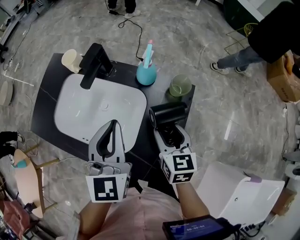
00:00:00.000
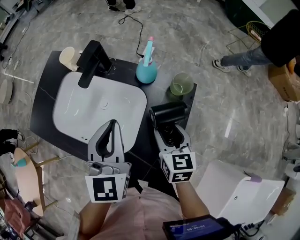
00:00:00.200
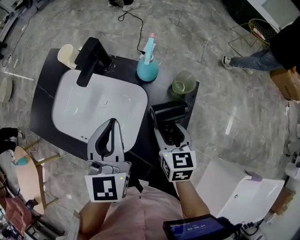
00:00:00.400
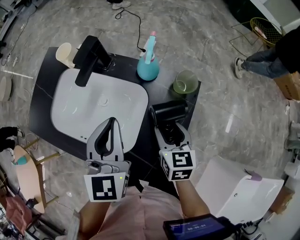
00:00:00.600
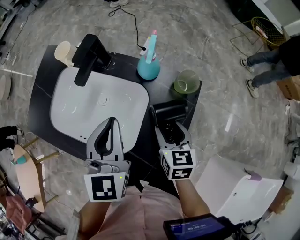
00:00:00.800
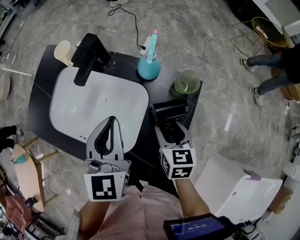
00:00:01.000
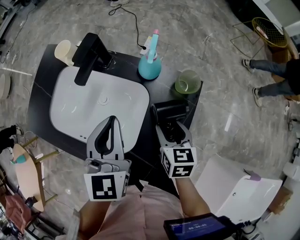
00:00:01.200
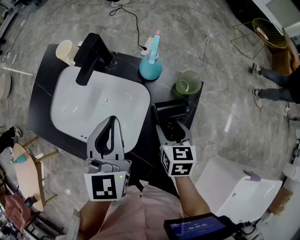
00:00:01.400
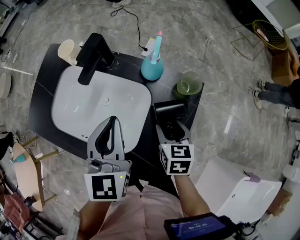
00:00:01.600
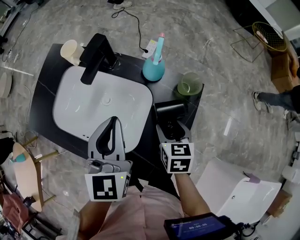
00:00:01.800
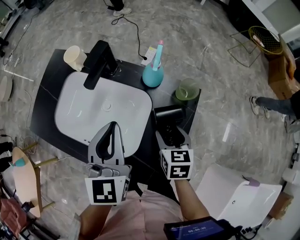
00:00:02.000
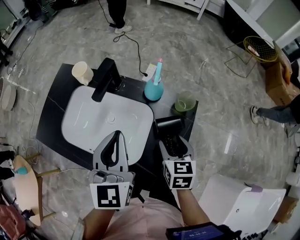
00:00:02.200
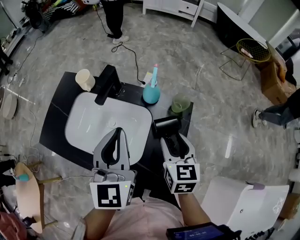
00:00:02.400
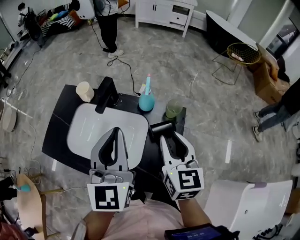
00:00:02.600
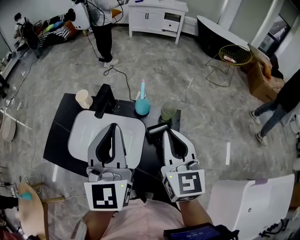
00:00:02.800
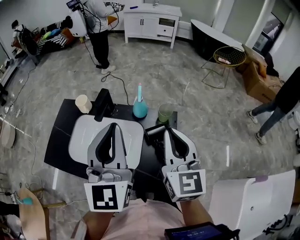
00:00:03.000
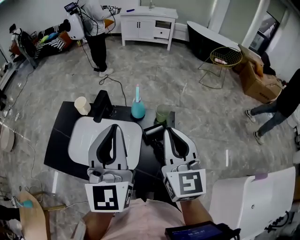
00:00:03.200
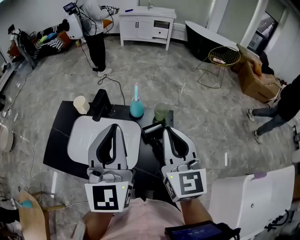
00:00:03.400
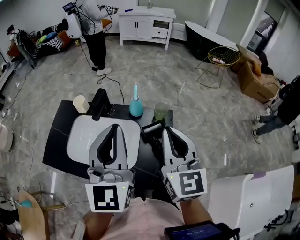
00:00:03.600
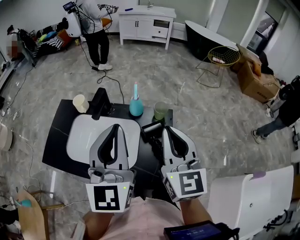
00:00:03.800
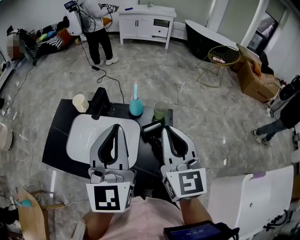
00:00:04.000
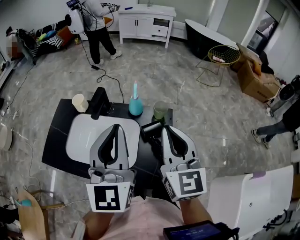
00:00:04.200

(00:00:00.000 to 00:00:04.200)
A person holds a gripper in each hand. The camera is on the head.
00:00:00.000 - 00:00:01.400: The right gripper is displaced downward by approximately 5 cm.
00:00:01.400 - 00:00:02.800: Both grippers move upward, about 25 cm. The left gripper turns by roughly 20 degrees. Meanwhile the right gripper tips its fingers upward by approximately 40 degrees, and closes.
00:00:02.800 - 00:00:04.200: The right gripper changes place by approximately 5 cm.

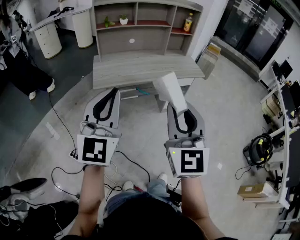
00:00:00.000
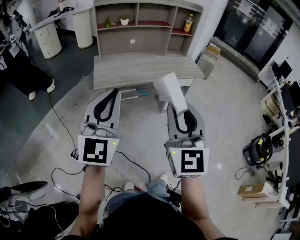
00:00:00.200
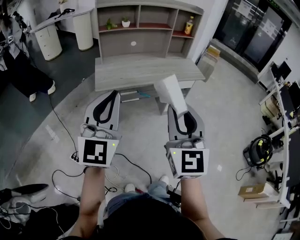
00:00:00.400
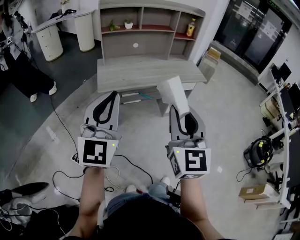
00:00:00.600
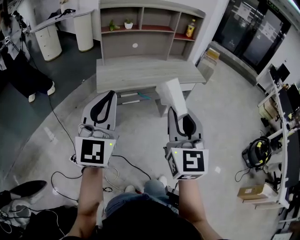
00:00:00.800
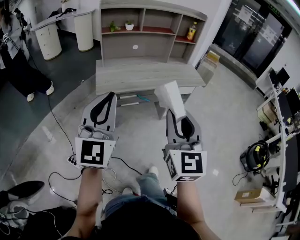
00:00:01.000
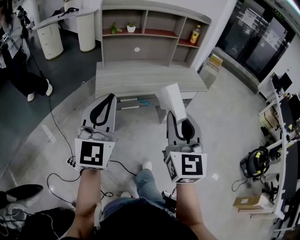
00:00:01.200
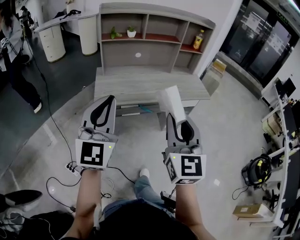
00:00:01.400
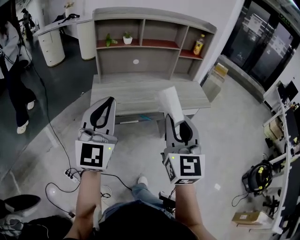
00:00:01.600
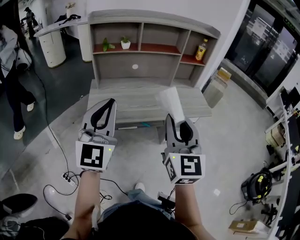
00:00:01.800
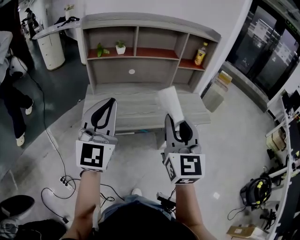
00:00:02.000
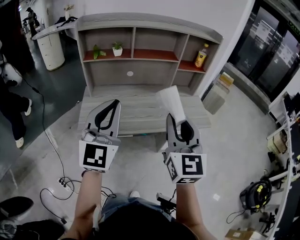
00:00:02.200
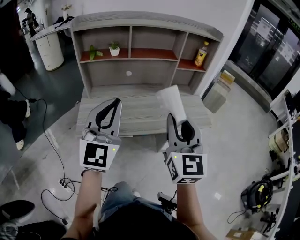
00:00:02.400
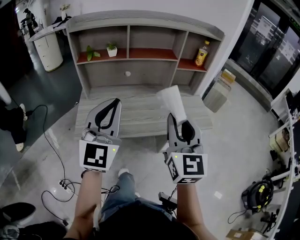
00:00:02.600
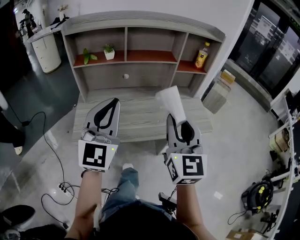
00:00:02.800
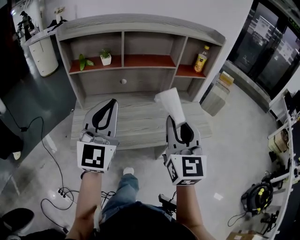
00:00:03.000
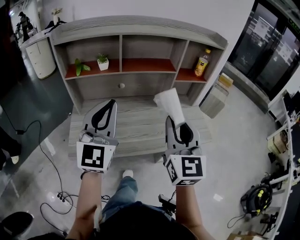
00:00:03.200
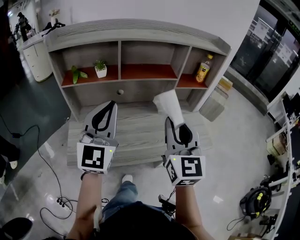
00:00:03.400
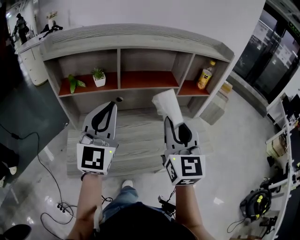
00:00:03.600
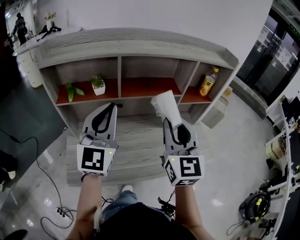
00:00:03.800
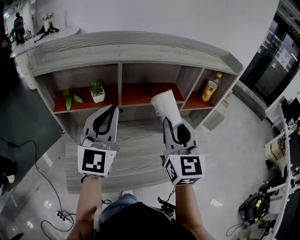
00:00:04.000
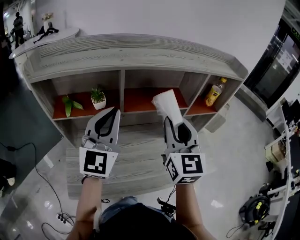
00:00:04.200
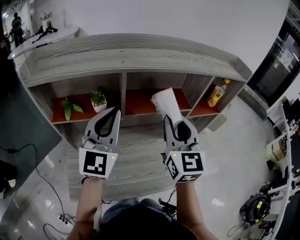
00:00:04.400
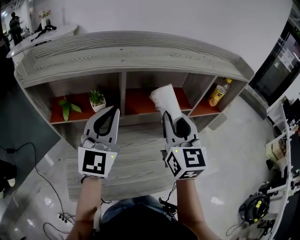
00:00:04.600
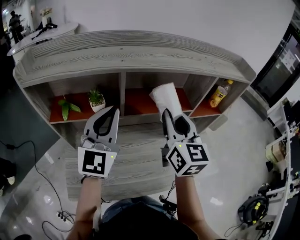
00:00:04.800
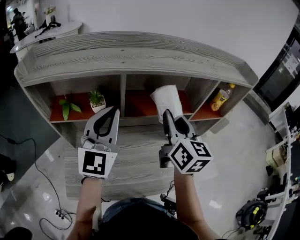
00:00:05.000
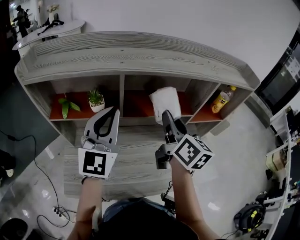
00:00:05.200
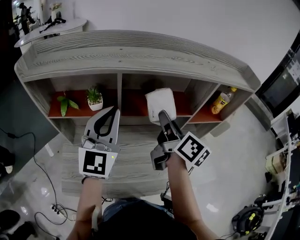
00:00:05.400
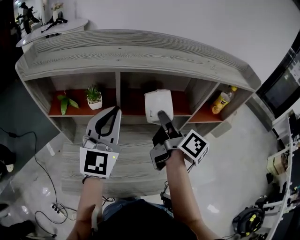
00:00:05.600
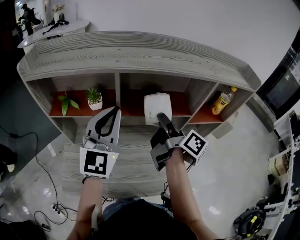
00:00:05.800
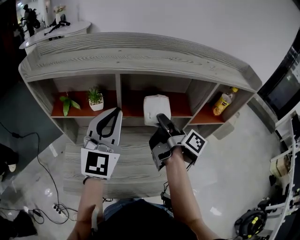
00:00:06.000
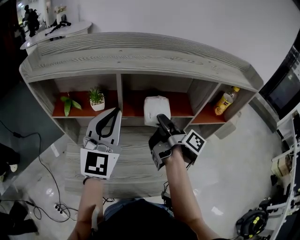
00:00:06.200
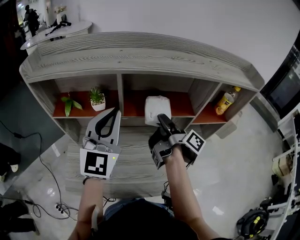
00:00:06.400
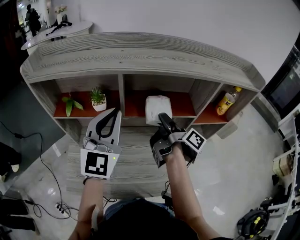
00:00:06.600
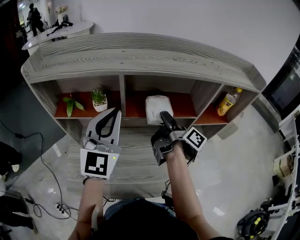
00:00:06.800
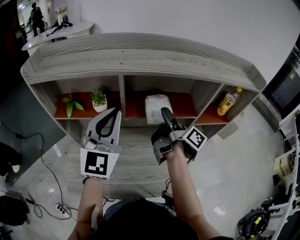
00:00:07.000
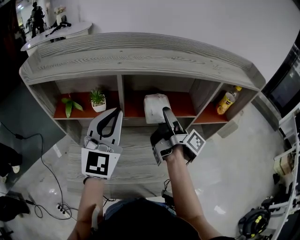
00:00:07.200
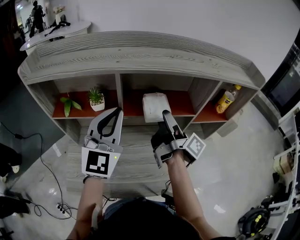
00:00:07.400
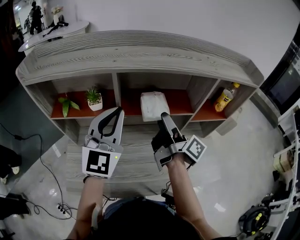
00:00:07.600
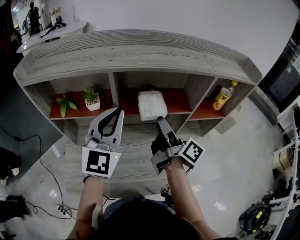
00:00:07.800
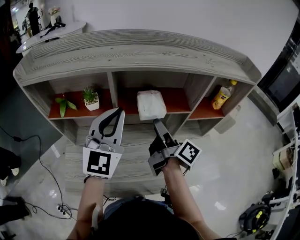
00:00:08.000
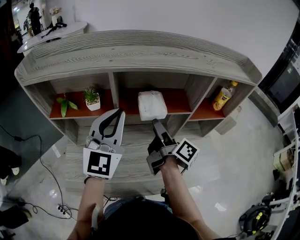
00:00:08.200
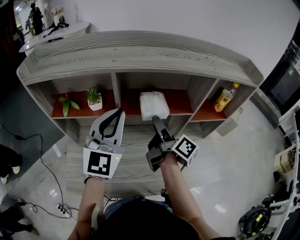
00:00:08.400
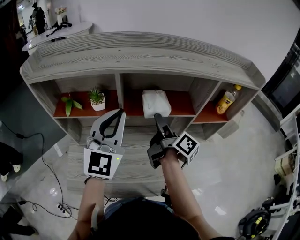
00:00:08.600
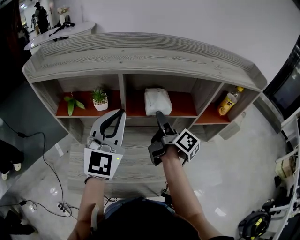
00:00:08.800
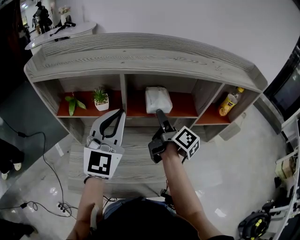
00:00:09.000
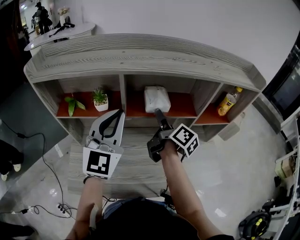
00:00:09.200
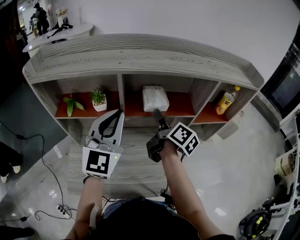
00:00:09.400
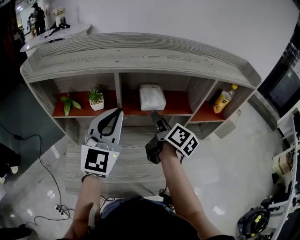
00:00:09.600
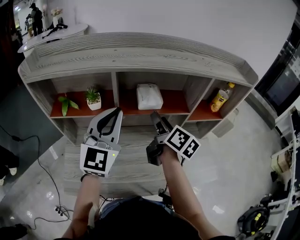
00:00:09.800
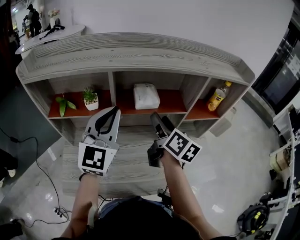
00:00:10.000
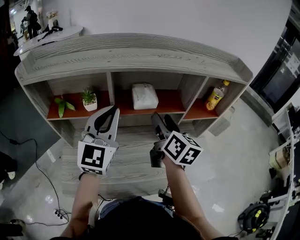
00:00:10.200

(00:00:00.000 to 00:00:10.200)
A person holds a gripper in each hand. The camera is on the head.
00:00:00.000 - 00:00:01.400: Both grippers move forward, approximately 10 cm.
00:00:01.400 - 00:00:03.000: Both grippers travel together forward, roughly 35 cm.
00:00:03.000 - 00:00:04.400: Both grippers travel together forward, approximately 30 cm.
00:00:04.400 - 00:00:05.800: The right gripper shifts about 10 cm downward and forward, and rotates around the line of its fingers by some 80 degrees, clockwise from behind.
00:00:05.800 - 00:00:07.200: The right gripper opens its fingers.
00:00:07.200 - 00:00:08.800: The grippers move only a little.
00:00:08.800 - 00:00:10.200: The right gripper shifts about 5 cm upward, and rotates around the line of its fingers by some 40 degrees, counterclockwise from behind.

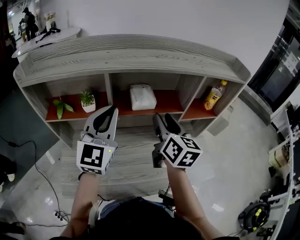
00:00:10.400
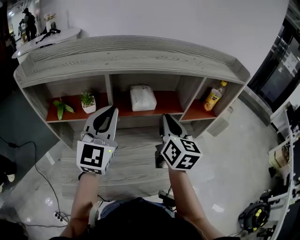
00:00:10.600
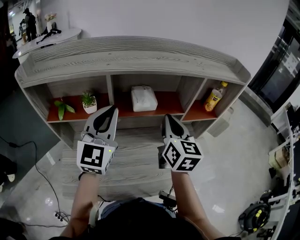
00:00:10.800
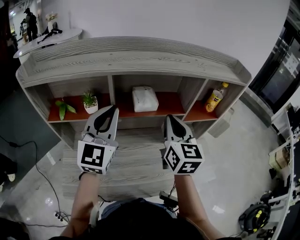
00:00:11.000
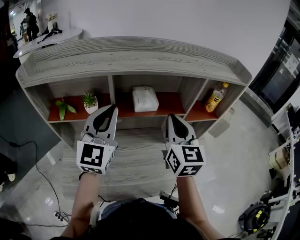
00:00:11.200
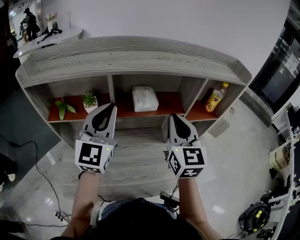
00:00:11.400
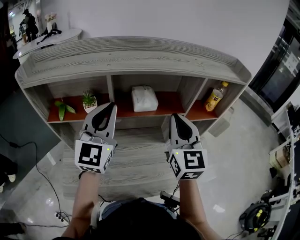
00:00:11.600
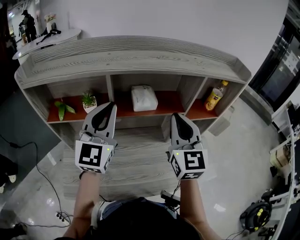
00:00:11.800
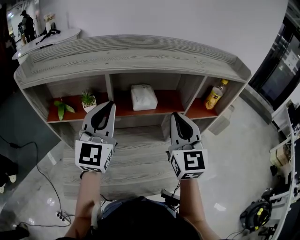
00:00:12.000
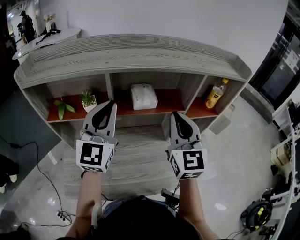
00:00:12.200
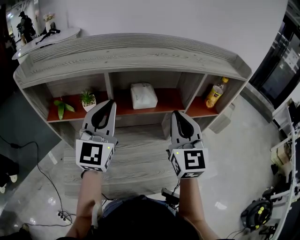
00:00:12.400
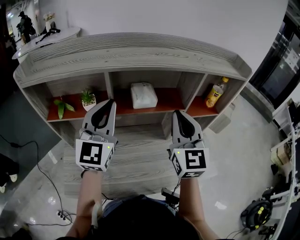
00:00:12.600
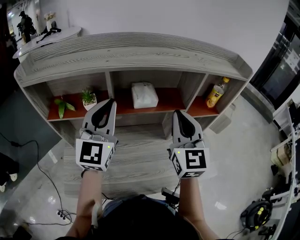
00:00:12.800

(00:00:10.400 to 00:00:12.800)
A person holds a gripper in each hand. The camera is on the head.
00:00:10.400 - 00:00:11.600: The right gripper goes some 5 cm upward, turns by approximately 30 degrees, and closes up.
00:00:11.600 - 00:00:12.800: Both grippers stay put.

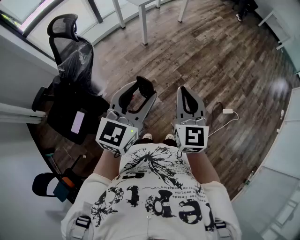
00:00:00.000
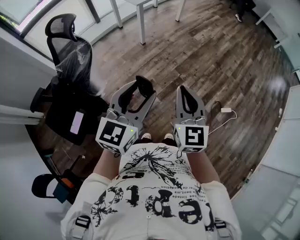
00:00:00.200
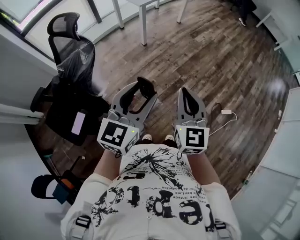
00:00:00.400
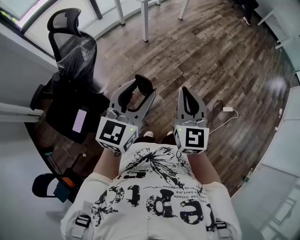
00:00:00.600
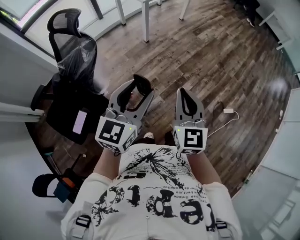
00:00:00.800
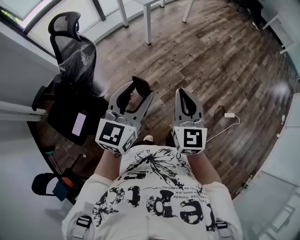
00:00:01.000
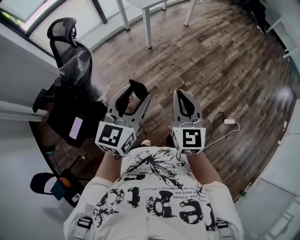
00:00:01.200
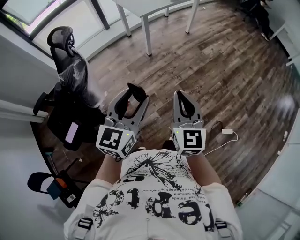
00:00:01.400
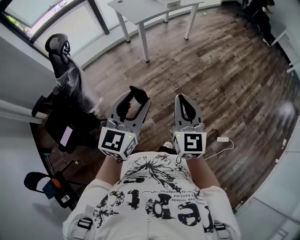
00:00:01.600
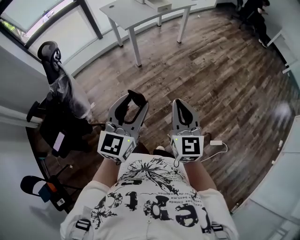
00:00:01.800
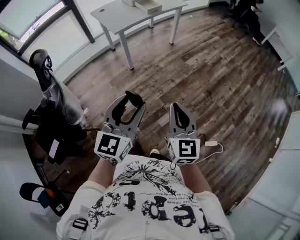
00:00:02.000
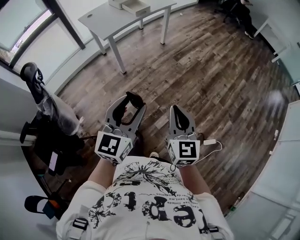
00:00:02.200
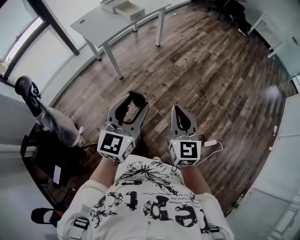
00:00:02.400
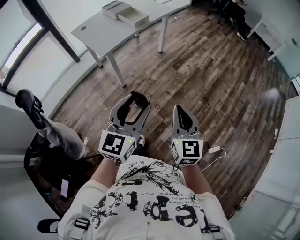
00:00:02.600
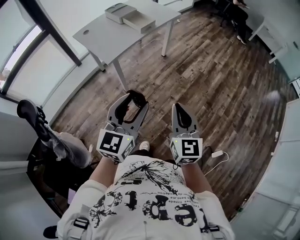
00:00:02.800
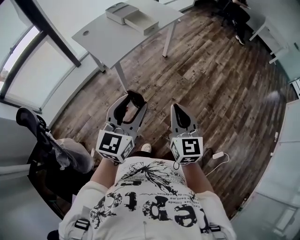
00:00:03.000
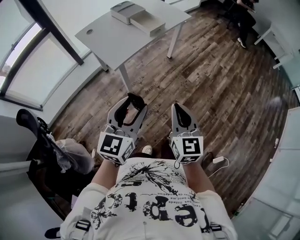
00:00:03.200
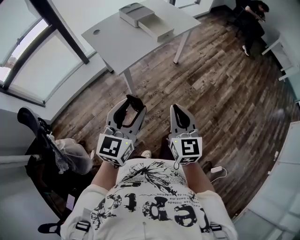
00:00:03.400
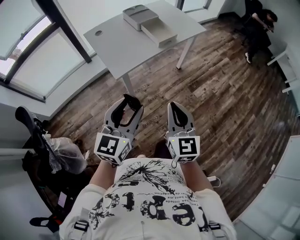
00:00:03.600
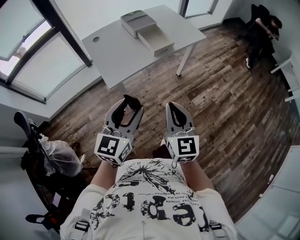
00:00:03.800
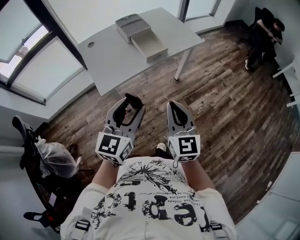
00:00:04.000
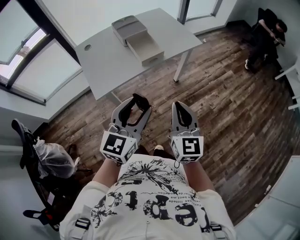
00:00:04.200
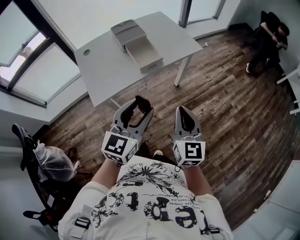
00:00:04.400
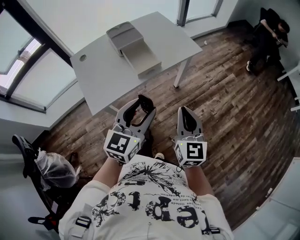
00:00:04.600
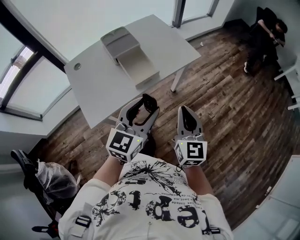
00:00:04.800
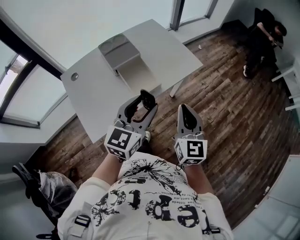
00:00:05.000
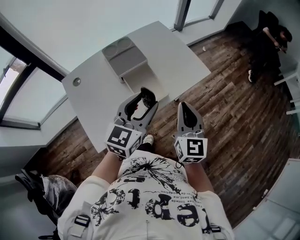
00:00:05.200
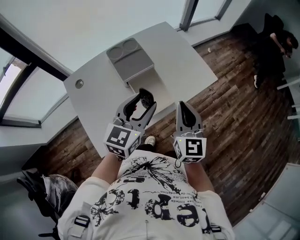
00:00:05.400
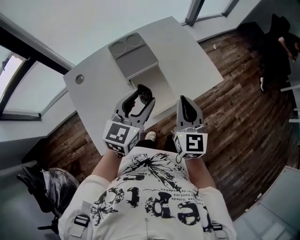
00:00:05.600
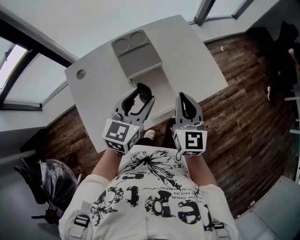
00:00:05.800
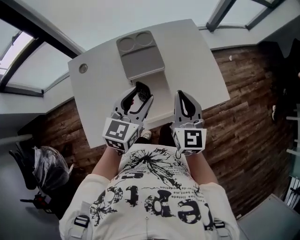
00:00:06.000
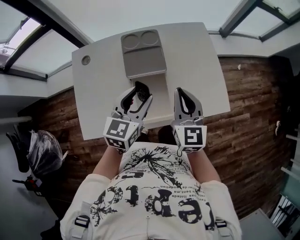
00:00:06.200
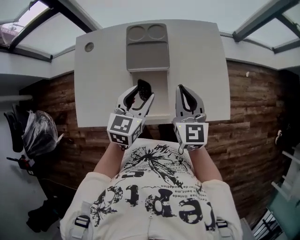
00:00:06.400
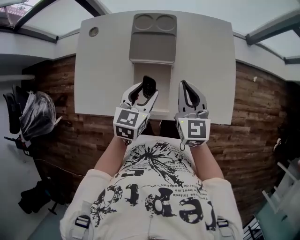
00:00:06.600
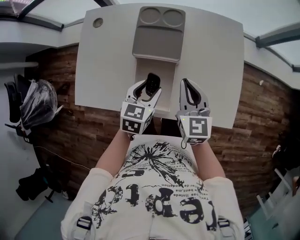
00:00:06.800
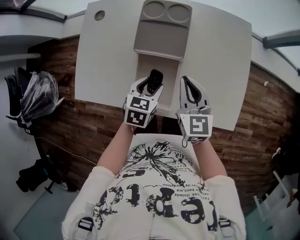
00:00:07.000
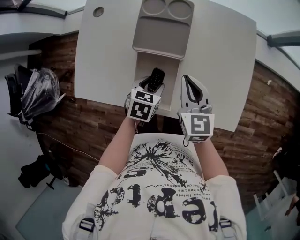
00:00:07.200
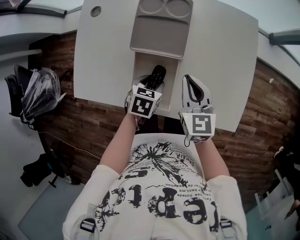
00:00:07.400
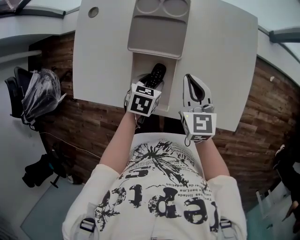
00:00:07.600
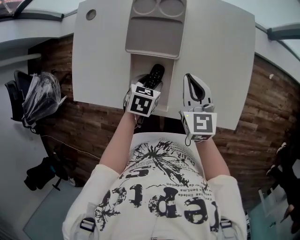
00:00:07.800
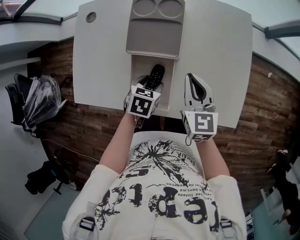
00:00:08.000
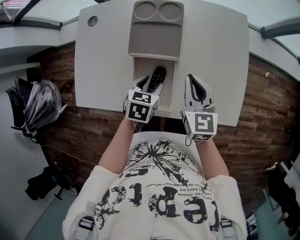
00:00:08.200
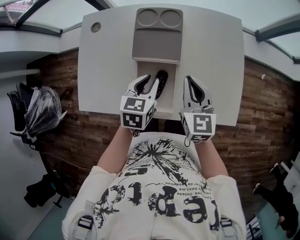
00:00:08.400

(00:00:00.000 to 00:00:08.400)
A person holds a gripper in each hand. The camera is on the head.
00:00:00.000 - 00:00:01.400: The two grippers go some 10 cm forward.
00:00:01.400 - 00:00:02.800: Both grippers move forward, about 35 cm.
00:00:02.800 - 00:00:04.200: Both grippers travel together forward, about 35 cm.
00:00:04.200 - 00:00:05.600: Both grippers are carried forward, some 40 cm.
00:00:05.600 - 00:00:07.000: The left gripper heads downward, covering approximately 20 cm, and tips its fingers downward by about 40 degrees, while the right gripper moves some 20 cm, and changes its angle by about 50 degrees.
00:00:07.000 - 00:00:08.400: The left gripper travels upward by some 5 cm, and closes.
